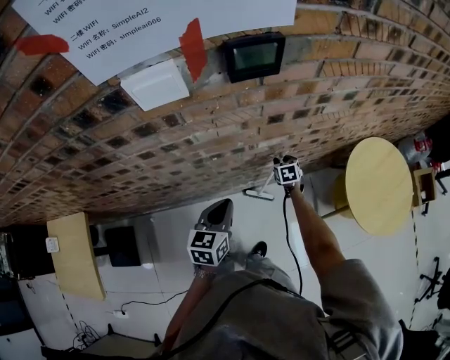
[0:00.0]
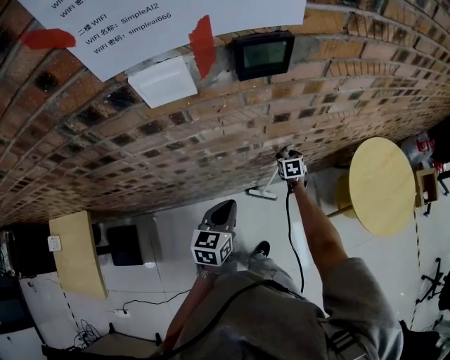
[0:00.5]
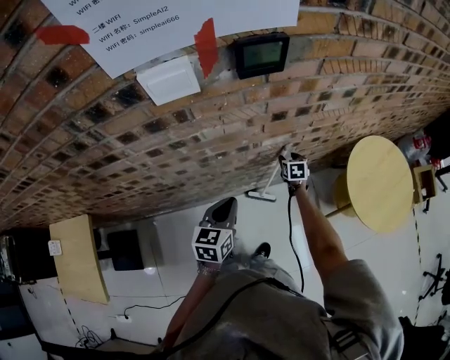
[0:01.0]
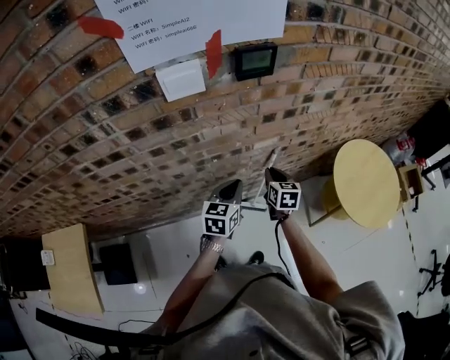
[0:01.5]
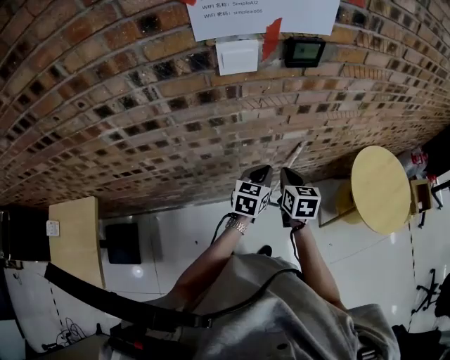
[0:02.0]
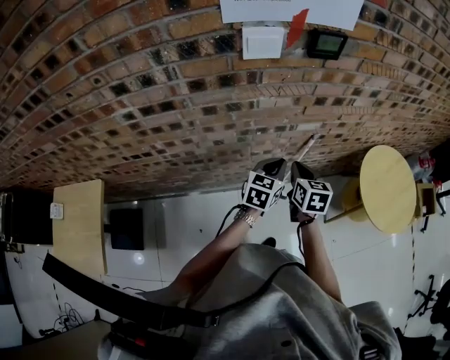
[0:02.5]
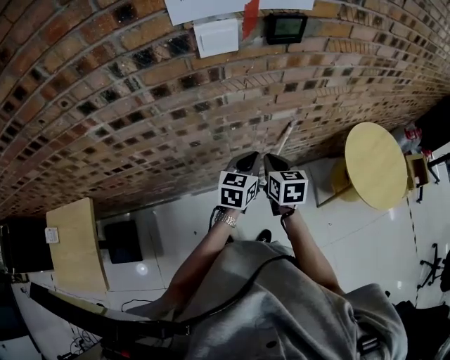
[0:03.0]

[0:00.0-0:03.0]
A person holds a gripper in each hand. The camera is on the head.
0:00.0 to 0:01.5: The right gripper travels upward and backward by about 20 cm, rotates roughly 20 degrees, and opens and closes again.
0:01.5 to 0:03.0: The right gripper moves backward, to the left and upward, roughly 15 cm.

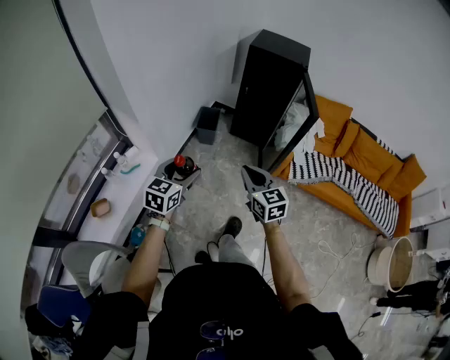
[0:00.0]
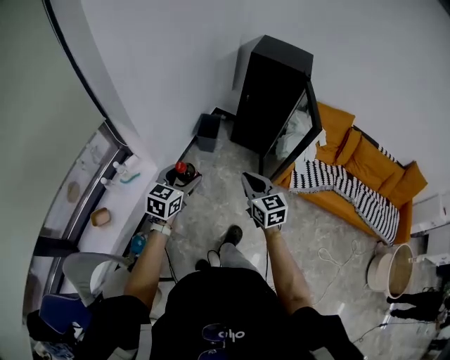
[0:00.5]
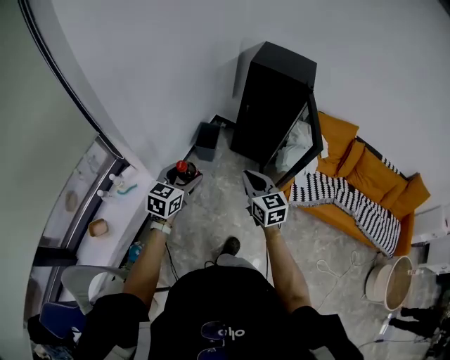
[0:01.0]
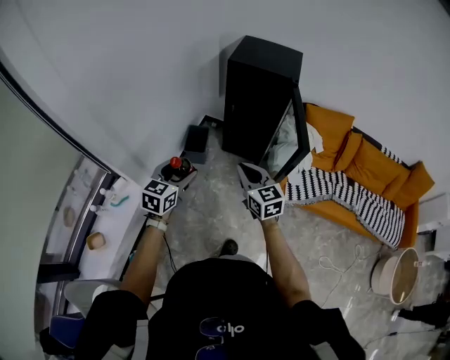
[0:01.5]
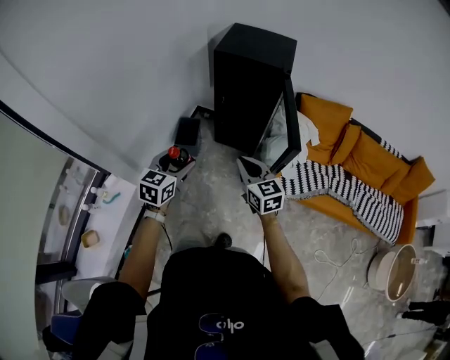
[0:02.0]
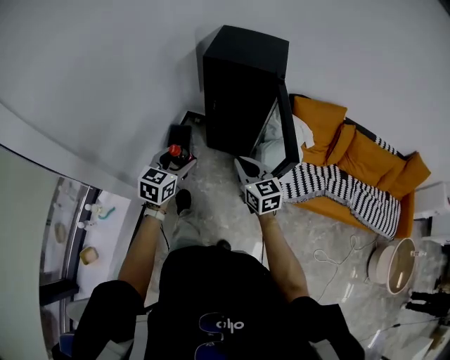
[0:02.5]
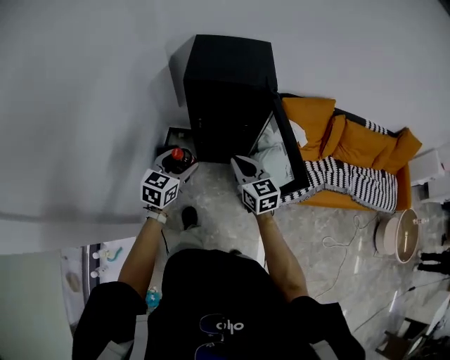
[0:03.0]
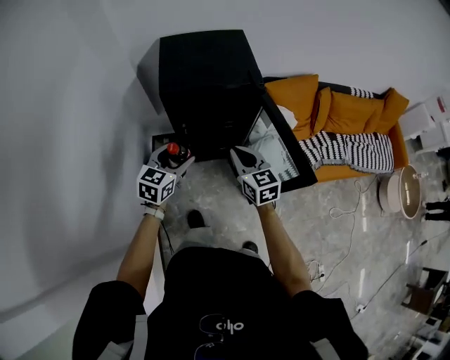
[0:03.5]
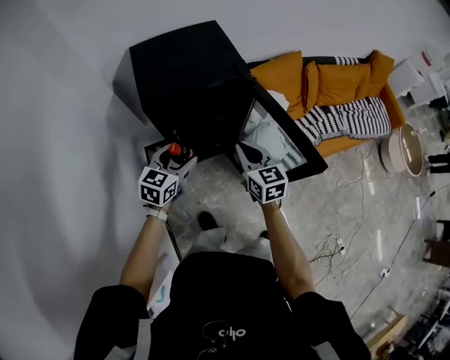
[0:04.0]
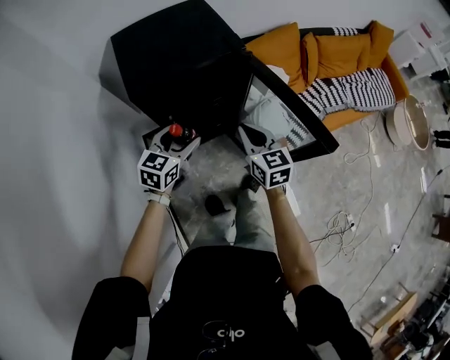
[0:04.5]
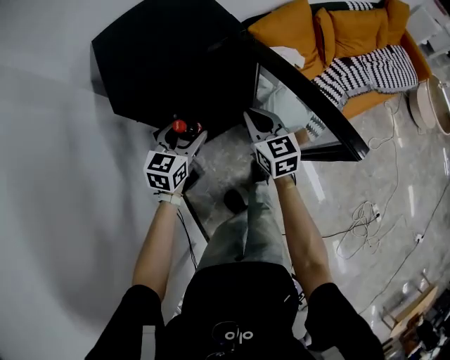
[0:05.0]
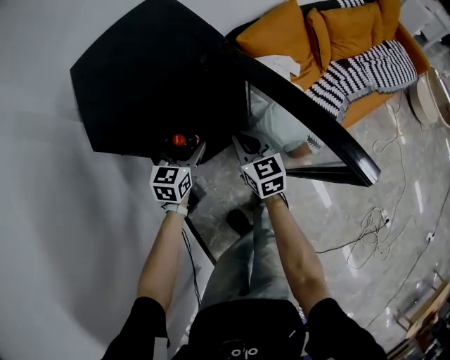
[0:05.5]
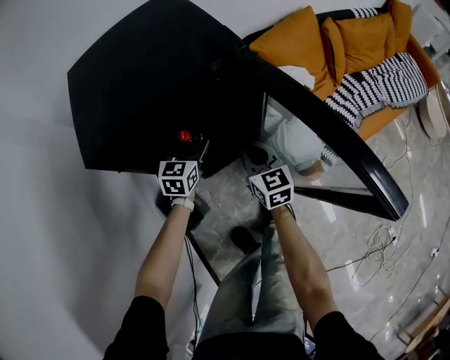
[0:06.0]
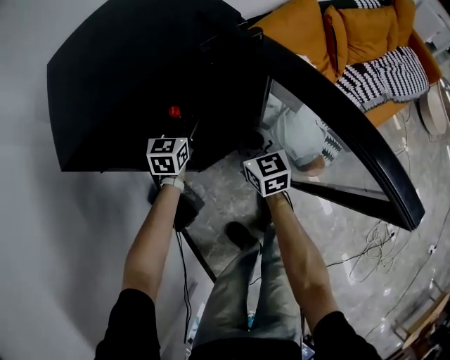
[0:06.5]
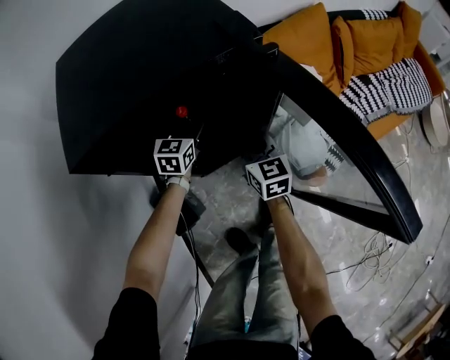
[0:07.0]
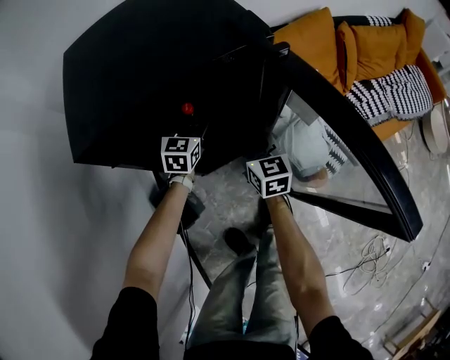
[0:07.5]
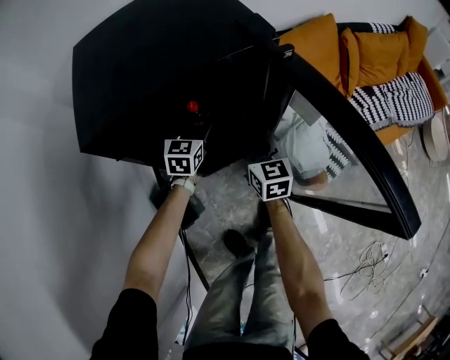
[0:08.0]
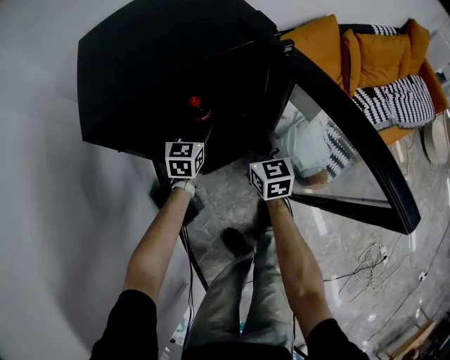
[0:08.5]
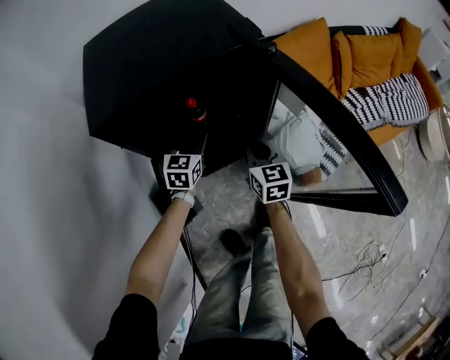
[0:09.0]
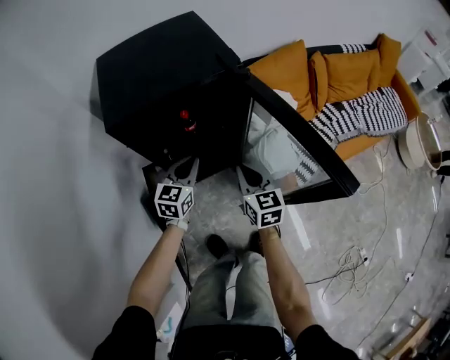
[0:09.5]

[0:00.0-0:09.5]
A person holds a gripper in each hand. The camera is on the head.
0:00.0 to 0:02.0: The grippers both shift forward and to the right by approximately 35 cm.
0:02.0 to 0:04.0: The right gripper shifts by roughly 30 cm, and rotates roughly 40 degrees. The left gripper shifts by roughly 40 cm, and rotates some 40 degrees.
0:04.0 to 0:05.5: The two grippers go some 25 cm downward and forward.
0:05.5 to 0:07.5: Both grippers travel together forward and downward, some 15 cm.
0:07.5 to 0:09.5: The grippers both shift backward and upward by approximately 20 cm. The left gripper closes up.

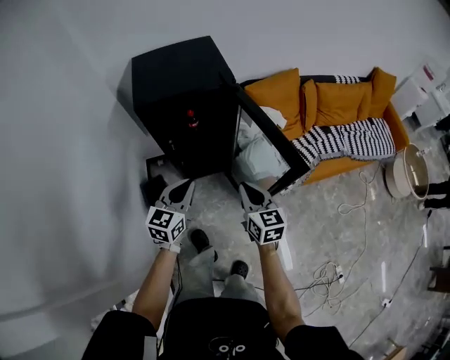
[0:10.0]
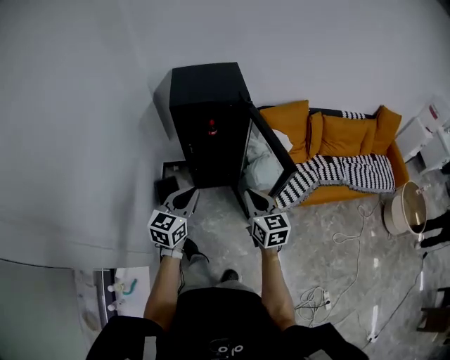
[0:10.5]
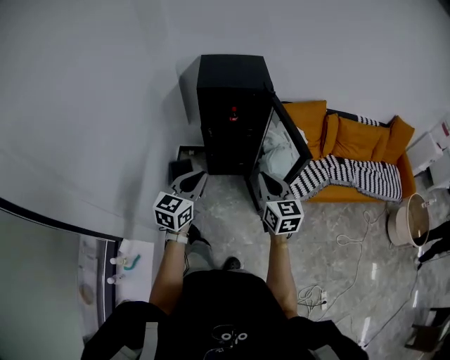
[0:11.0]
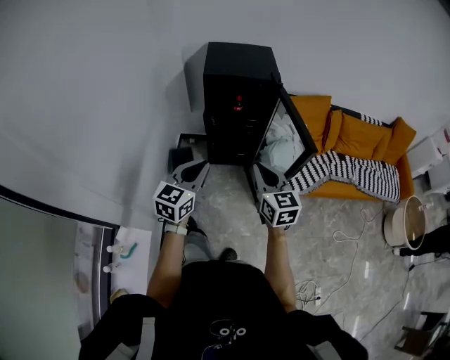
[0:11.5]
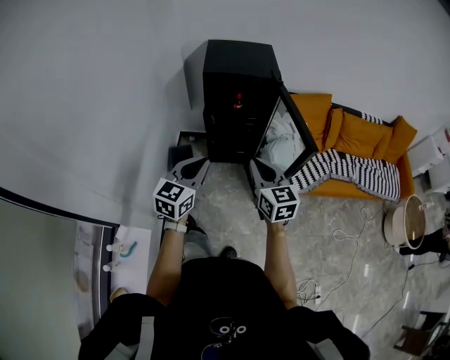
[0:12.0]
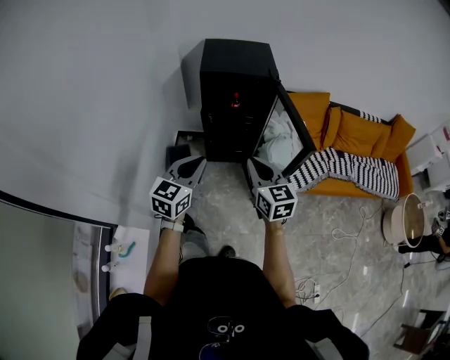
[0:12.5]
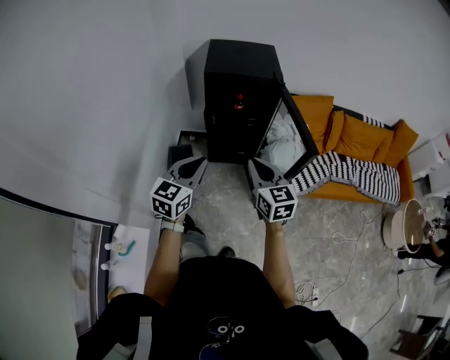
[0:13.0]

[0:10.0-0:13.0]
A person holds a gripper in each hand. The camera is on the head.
0:10.0 to 0:11.5: The grippers both shift backward and upward by about 25 cm.
0:11.5 to 0:13.0: There are only small adjustments of the grippers.

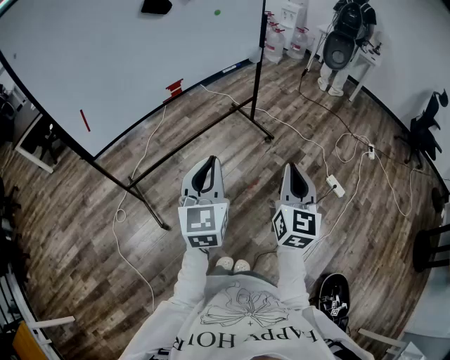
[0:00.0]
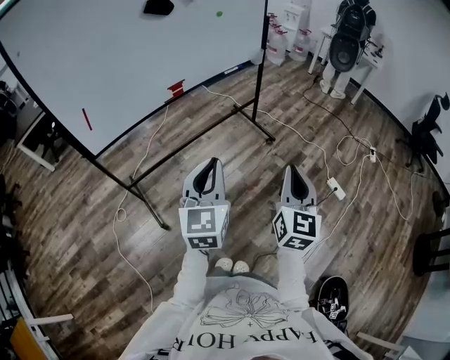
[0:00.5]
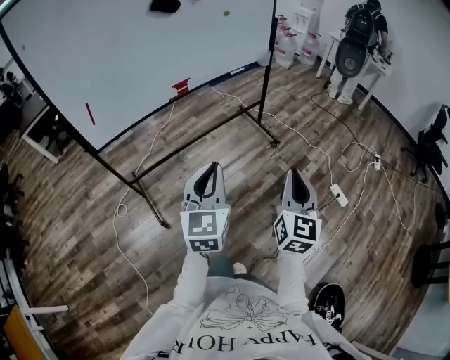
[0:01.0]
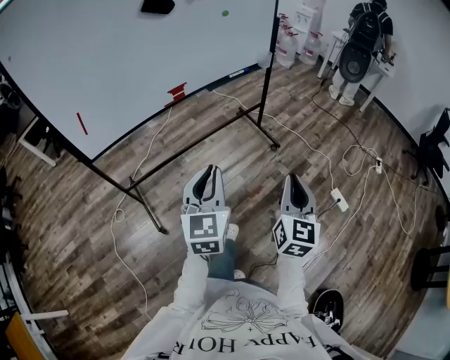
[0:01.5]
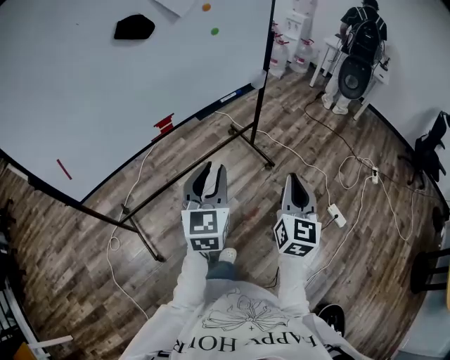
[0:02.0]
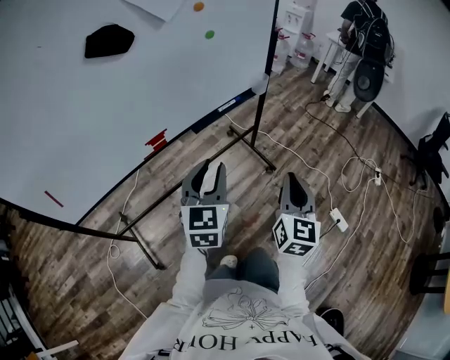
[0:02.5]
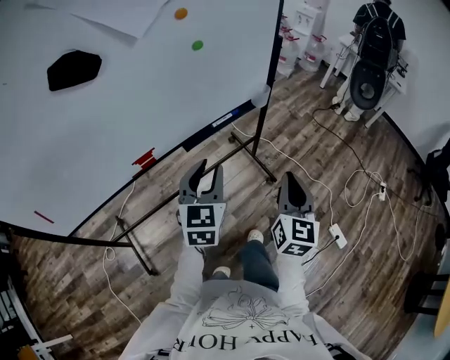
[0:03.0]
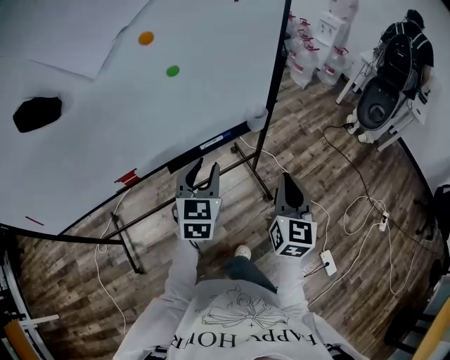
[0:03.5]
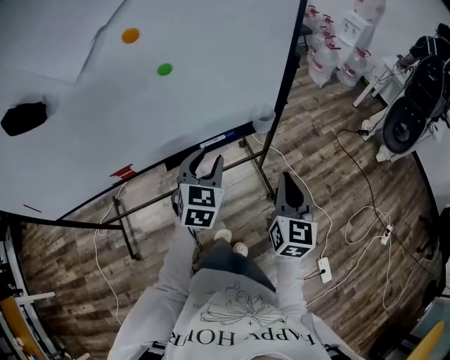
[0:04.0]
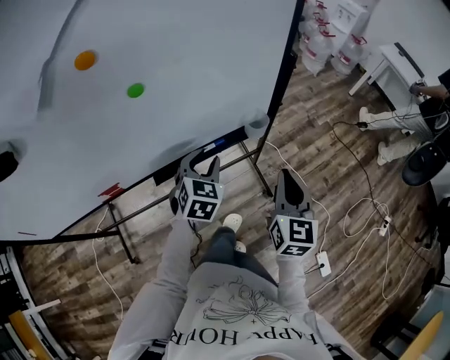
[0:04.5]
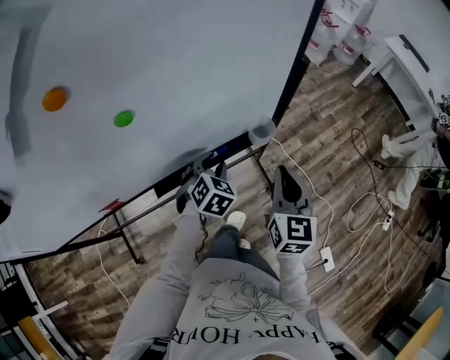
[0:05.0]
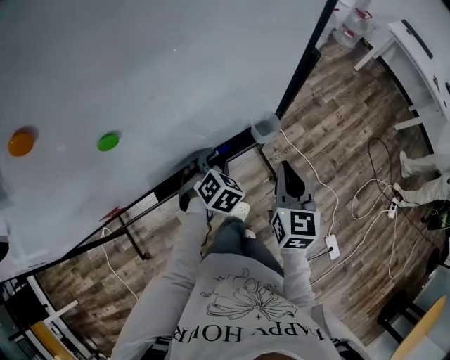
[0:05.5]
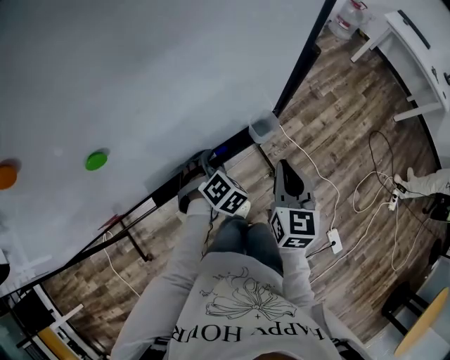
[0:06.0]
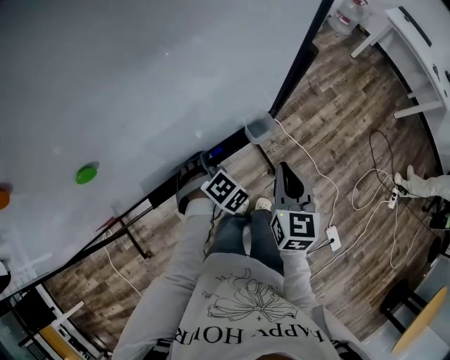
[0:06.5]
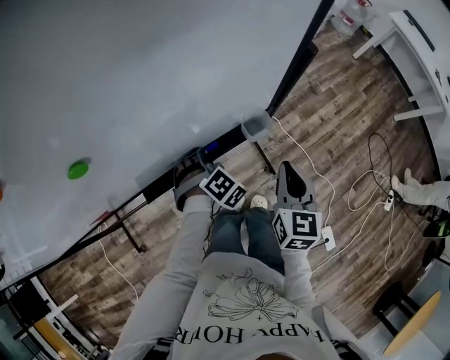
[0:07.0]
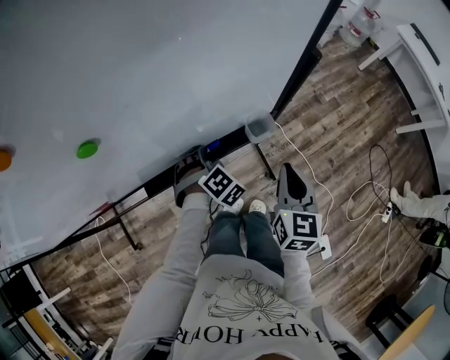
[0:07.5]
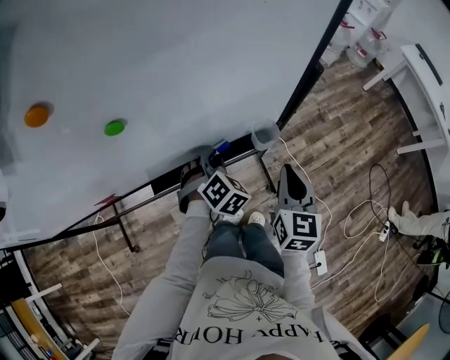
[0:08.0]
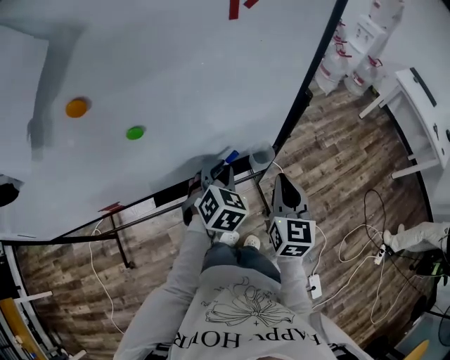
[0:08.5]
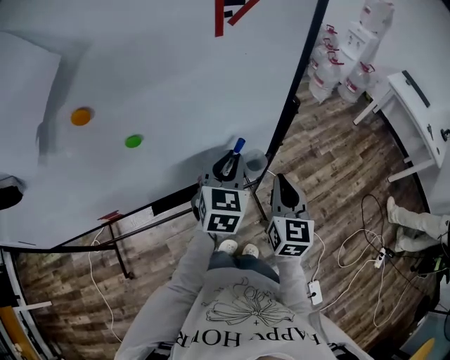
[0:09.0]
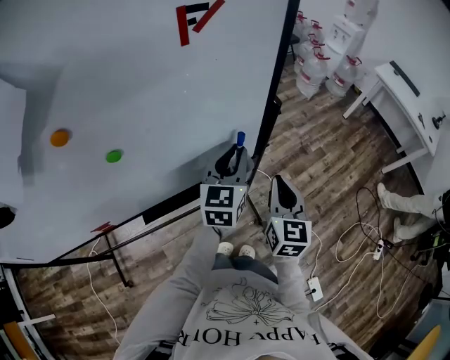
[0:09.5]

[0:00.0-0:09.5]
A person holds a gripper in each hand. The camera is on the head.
0:00.0 to 0:02.0: The grippers both shift forward by roughly 25 cm.
0:02.0 to 0:04.0: The pair of grippers is taken forward, roughly 50 cm. The left gripper changes its angle by some 20 degrees. The right gripper turns by some 20 degrees.
0:04.0 to 0:05.5: The right gripper shifts about 20 cm forward and downward; the left gripper goes approximately 25 cm downward and forward, and points its fingers about 30 degrees further downward.
0:07.5 to 0:09.5: The right gripper goes roughly 10 cm upward. The left gripper heads upward and to the right, covering about 25 cm, and points its fingers about 50 degrees further upward.

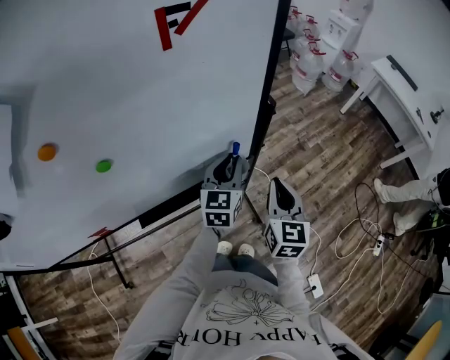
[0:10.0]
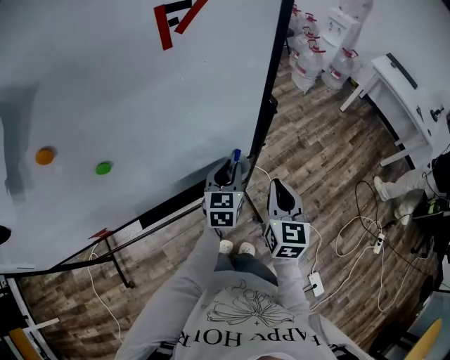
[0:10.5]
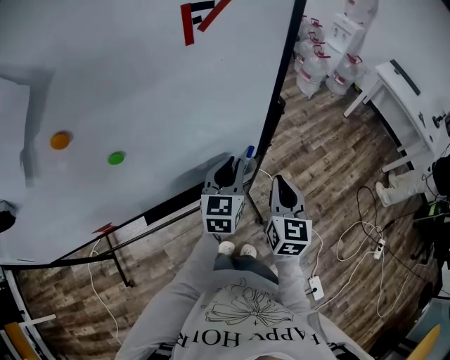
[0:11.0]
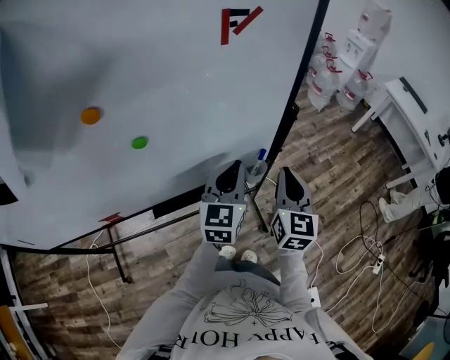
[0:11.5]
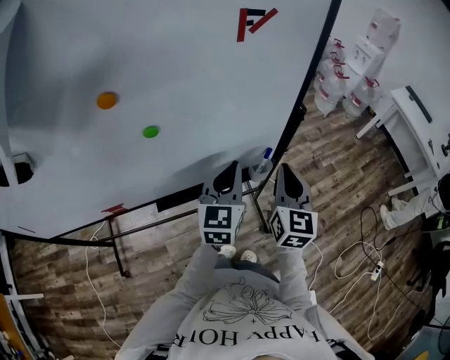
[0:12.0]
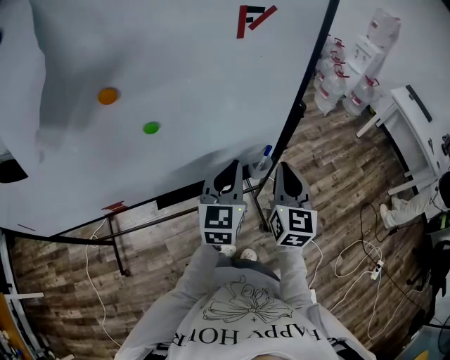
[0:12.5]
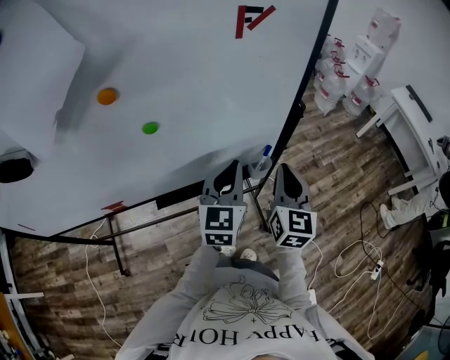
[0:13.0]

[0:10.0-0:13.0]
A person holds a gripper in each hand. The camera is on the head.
0:10.0 to 0:11.5: The left gripper heads upward and backward, covering some 10 cm, while the right gripper shifts about 5 cm upward.
0:11.5 to 0:13.0: The grippers move only a little.
